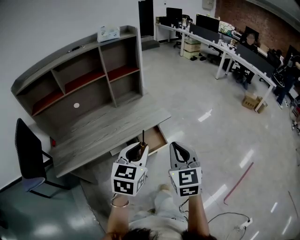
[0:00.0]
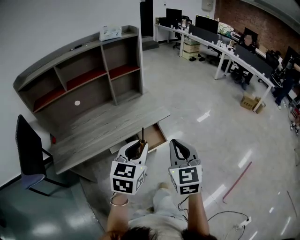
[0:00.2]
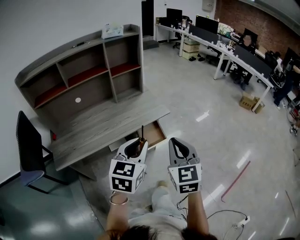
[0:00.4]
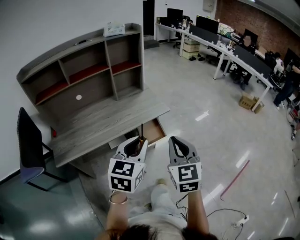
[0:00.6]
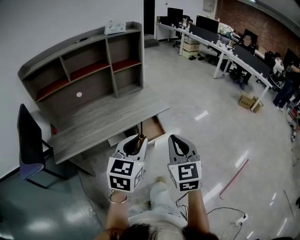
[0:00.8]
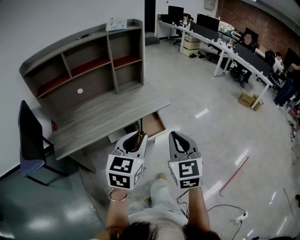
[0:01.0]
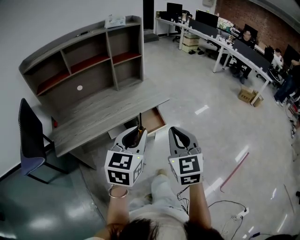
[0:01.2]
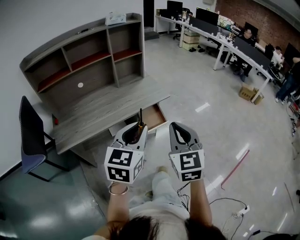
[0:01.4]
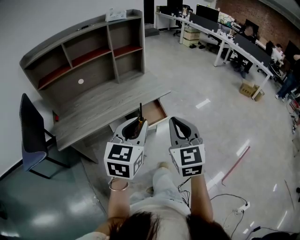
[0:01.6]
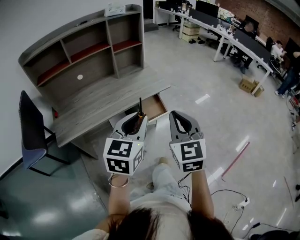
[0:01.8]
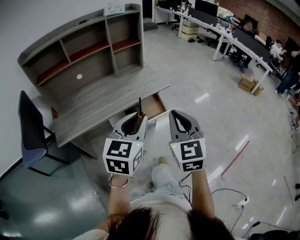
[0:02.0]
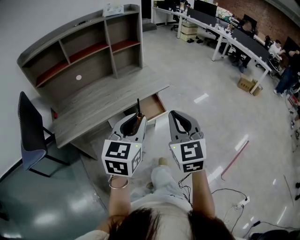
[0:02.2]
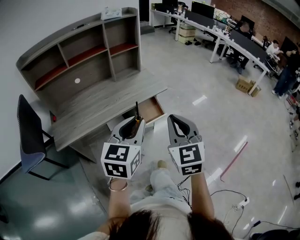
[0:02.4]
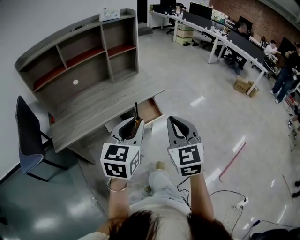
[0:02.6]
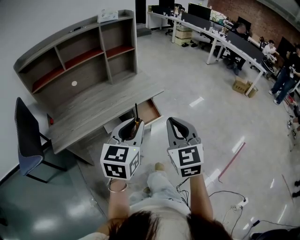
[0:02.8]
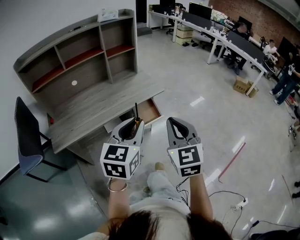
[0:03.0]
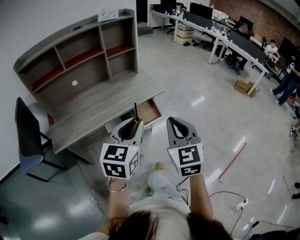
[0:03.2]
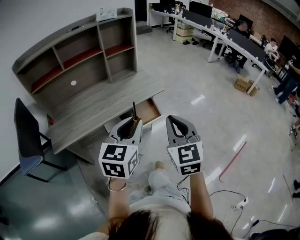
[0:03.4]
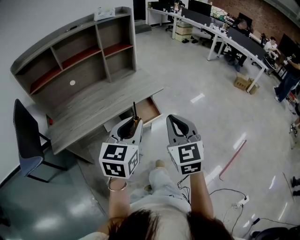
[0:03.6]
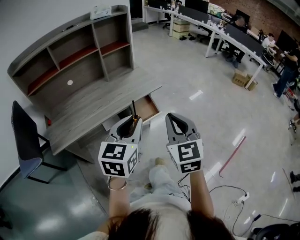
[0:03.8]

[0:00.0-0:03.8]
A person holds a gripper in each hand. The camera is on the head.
0:00.0 to 0:01.2: The two grippers go some 10 cm backward.
0:01.2 to 0:03.8: The grippers make only small movements.

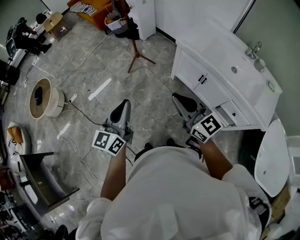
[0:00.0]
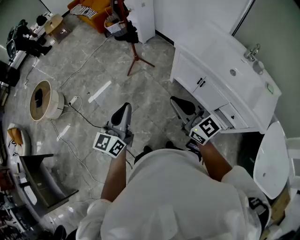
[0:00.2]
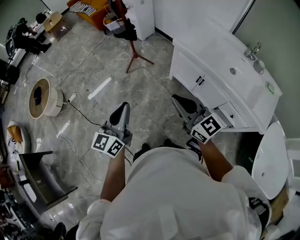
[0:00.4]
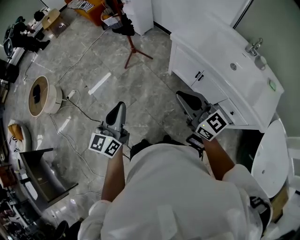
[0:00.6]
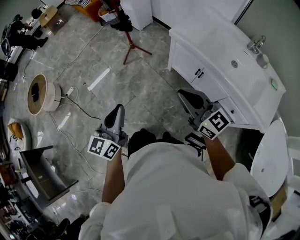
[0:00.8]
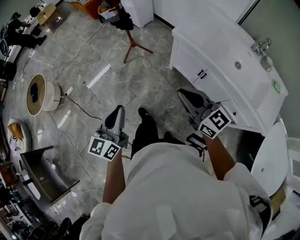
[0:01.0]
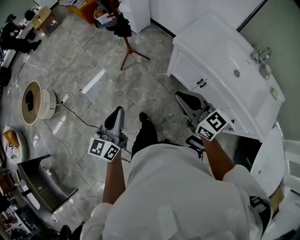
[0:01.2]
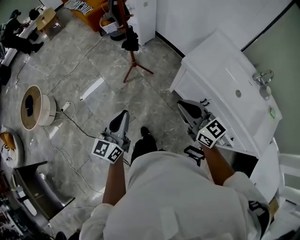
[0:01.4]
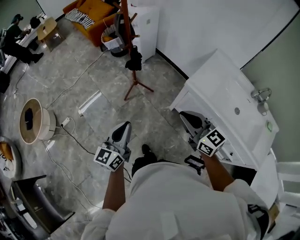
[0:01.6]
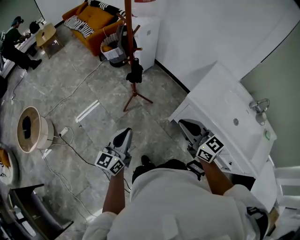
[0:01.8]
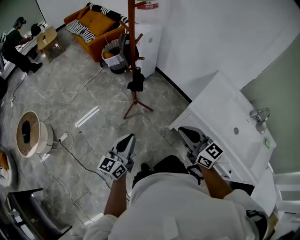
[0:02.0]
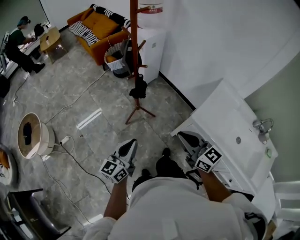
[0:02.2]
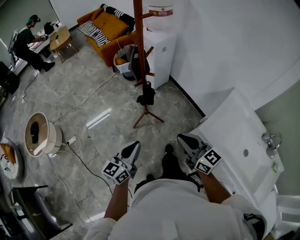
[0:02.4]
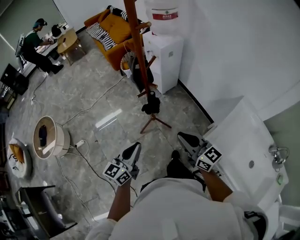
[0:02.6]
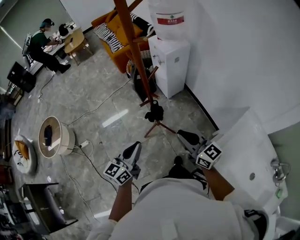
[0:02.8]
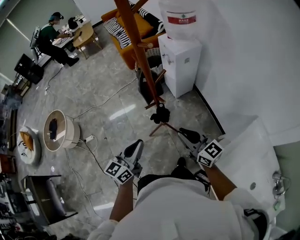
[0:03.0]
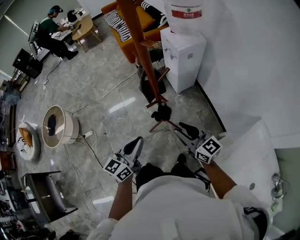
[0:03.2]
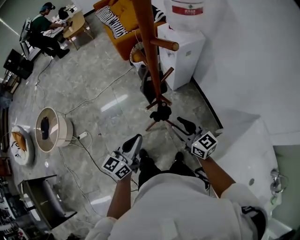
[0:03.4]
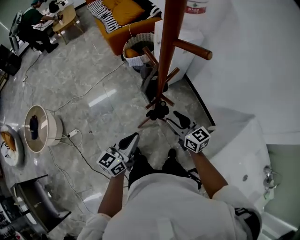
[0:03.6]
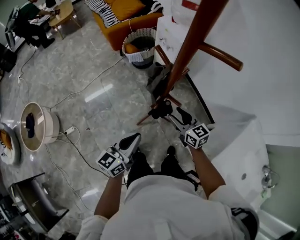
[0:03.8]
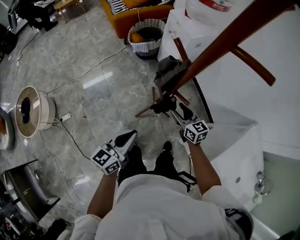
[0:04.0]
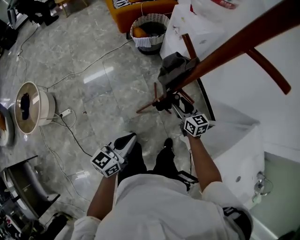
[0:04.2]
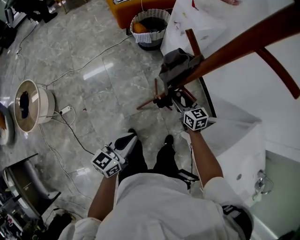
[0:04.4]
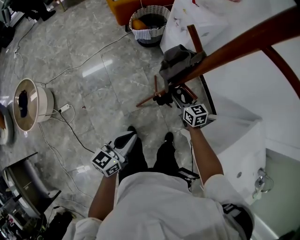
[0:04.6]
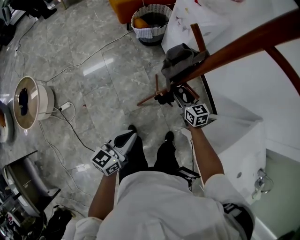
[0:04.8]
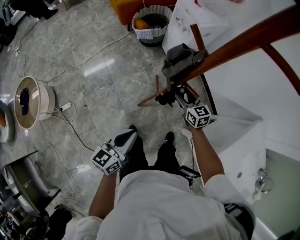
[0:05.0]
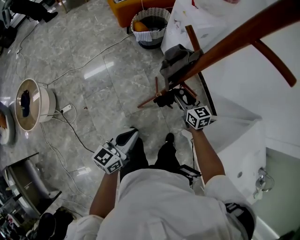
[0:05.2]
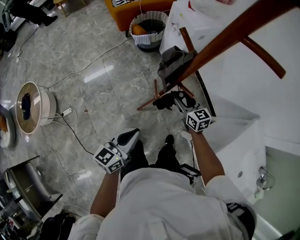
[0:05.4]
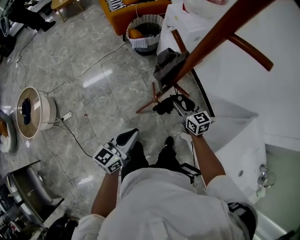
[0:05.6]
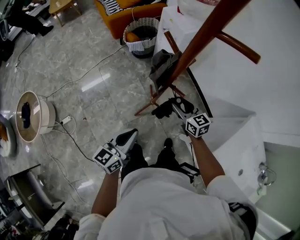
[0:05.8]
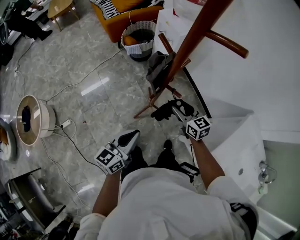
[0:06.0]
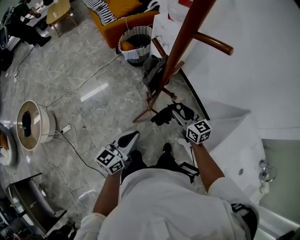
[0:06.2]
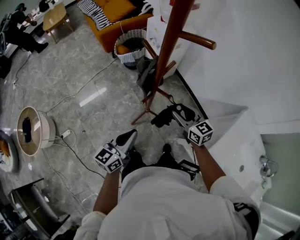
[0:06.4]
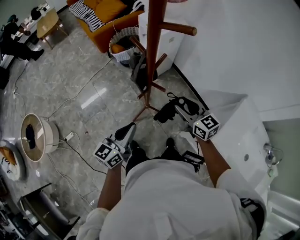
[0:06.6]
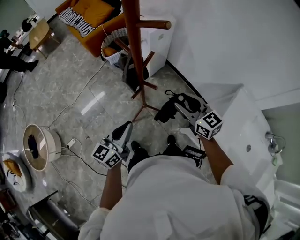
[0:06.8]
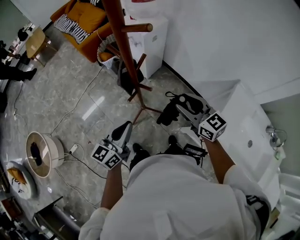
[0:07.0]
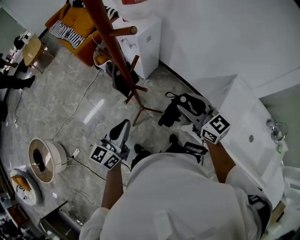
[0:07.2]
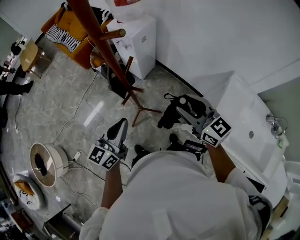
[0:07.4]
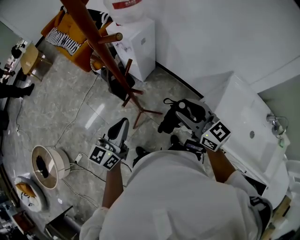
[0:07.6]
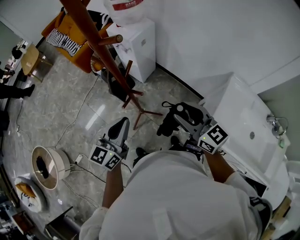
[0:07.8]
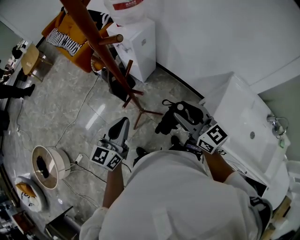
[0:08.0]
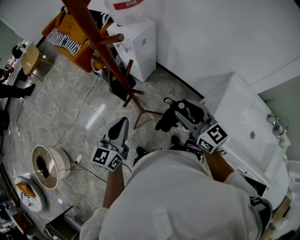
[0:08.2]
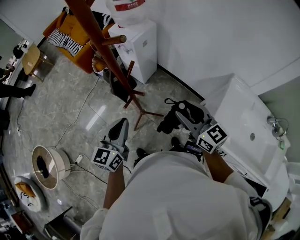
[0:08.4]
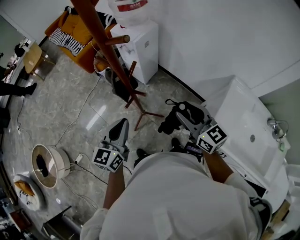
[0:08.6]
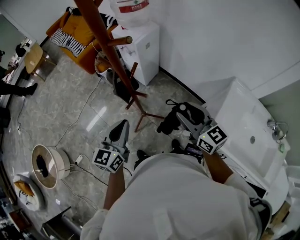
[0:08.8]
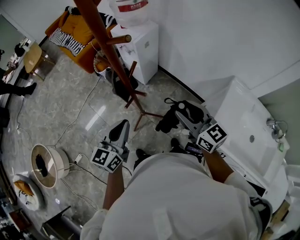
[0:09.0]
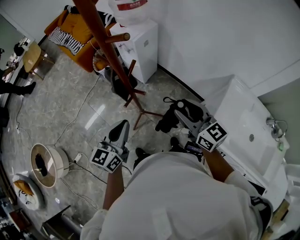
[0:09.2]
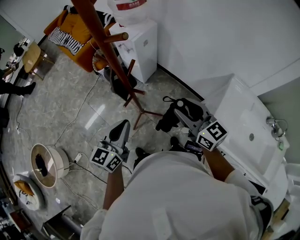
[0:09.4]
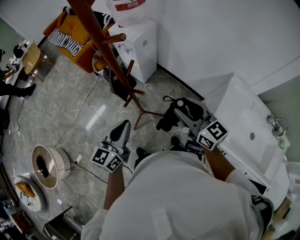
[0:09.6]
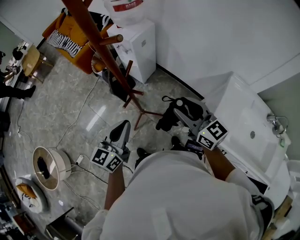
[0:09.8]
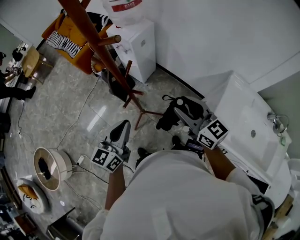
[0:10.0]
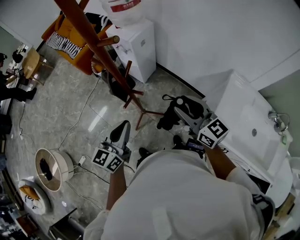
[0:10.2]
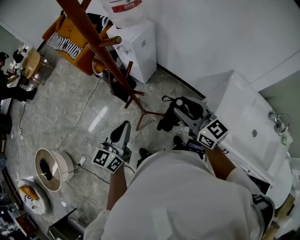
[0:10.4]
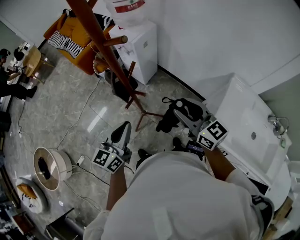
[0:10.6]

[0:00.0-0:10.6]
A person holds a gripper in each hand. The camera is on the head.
0:00.0 to 0:01.6: Both grippers travel together forward, about 25 cm.
0:01.6 to 0:03.0: Both grippers move forward, some 35 cm. The right gripper turns by roughly 20 degrees.
0:03.0 to 0:04.6: The left gripper is displaced downward, to the left and forward by some 20 cm. The right gripper heads downward, forward and to the left, covering some 35 cm, turns by about 30 degrees, and opens.
0:04.6 to 0:06.0: The right gripper travels upward and backward by approximately 10 cm; the left gripper is displaced upward by about 5 cm.
0:06.0 to 0:07.6: The right gripper moves upward, to the right and backward, roughly 25 cm, while the left gripper is displaced upward, to the right and forward by about 15 cm.
0:07.6 to 0:10.6: The grippers make only small movements.

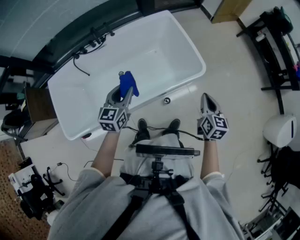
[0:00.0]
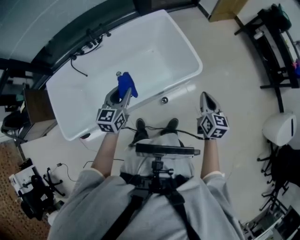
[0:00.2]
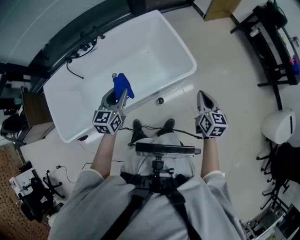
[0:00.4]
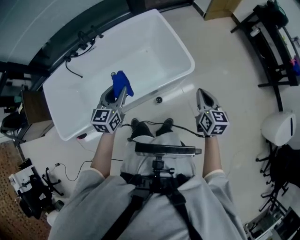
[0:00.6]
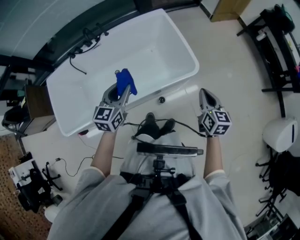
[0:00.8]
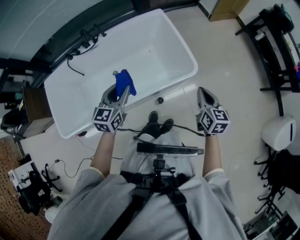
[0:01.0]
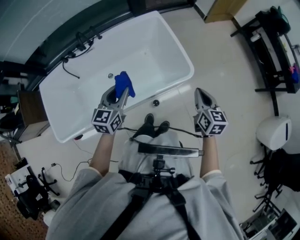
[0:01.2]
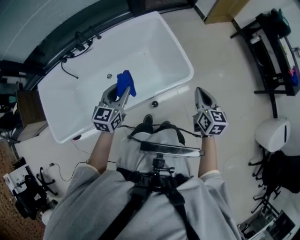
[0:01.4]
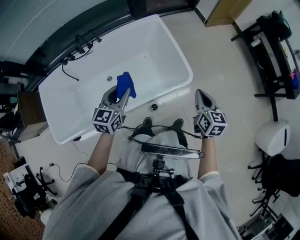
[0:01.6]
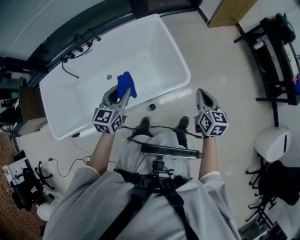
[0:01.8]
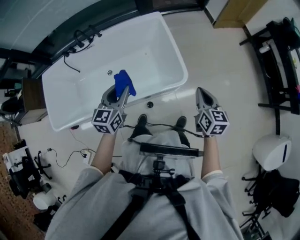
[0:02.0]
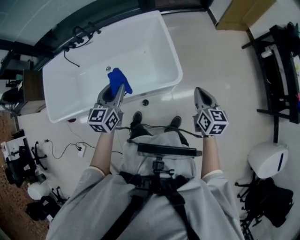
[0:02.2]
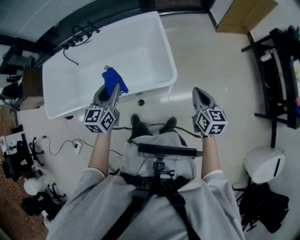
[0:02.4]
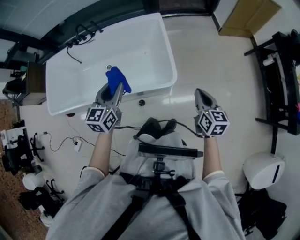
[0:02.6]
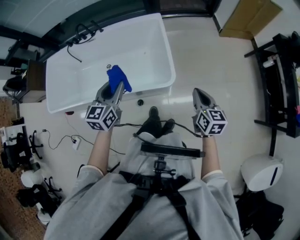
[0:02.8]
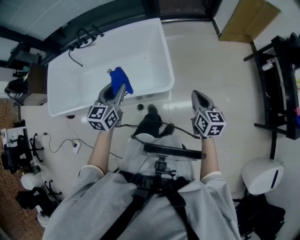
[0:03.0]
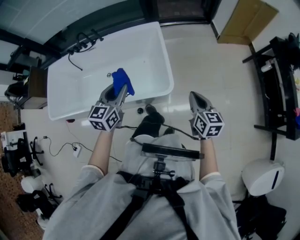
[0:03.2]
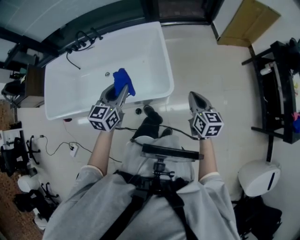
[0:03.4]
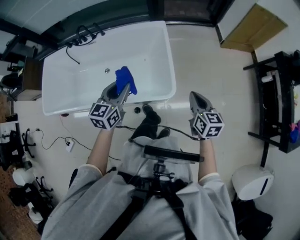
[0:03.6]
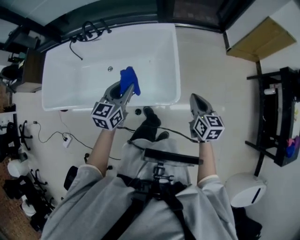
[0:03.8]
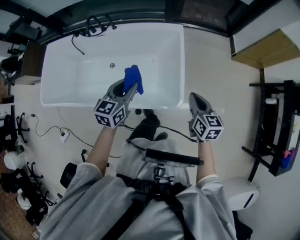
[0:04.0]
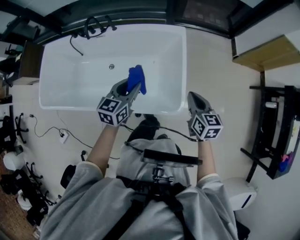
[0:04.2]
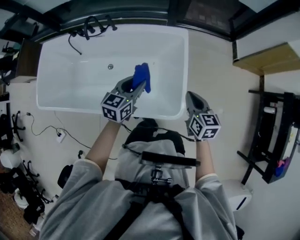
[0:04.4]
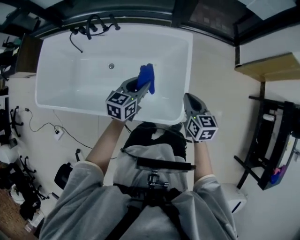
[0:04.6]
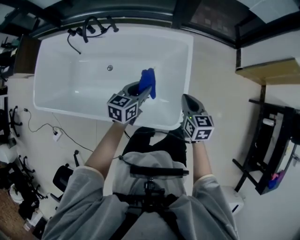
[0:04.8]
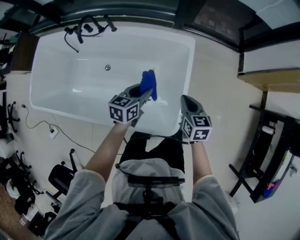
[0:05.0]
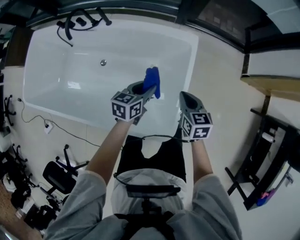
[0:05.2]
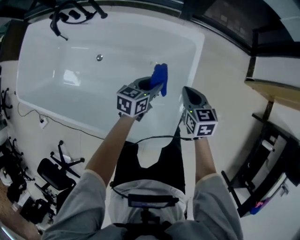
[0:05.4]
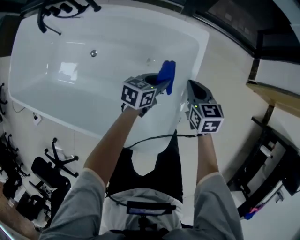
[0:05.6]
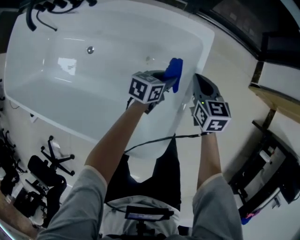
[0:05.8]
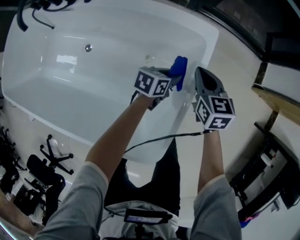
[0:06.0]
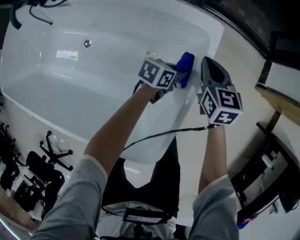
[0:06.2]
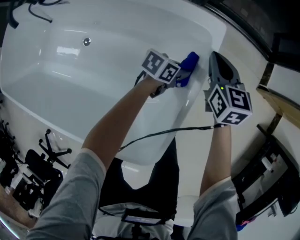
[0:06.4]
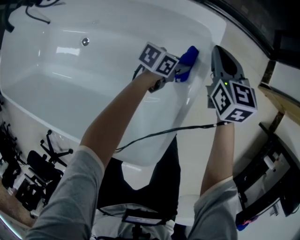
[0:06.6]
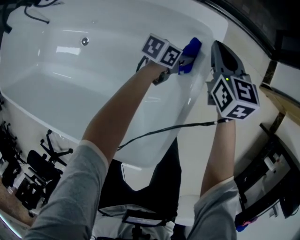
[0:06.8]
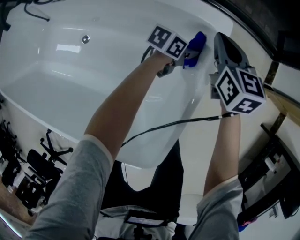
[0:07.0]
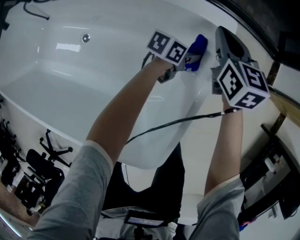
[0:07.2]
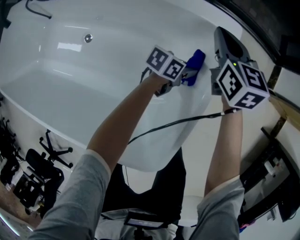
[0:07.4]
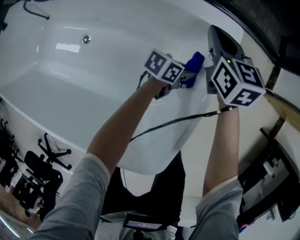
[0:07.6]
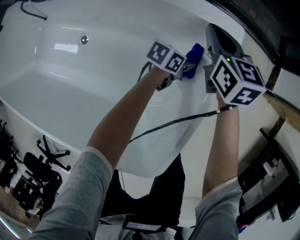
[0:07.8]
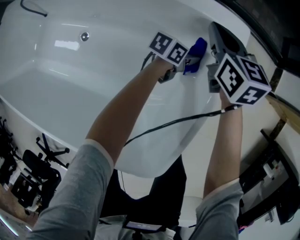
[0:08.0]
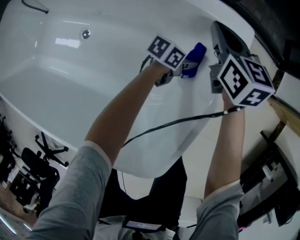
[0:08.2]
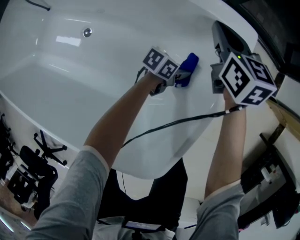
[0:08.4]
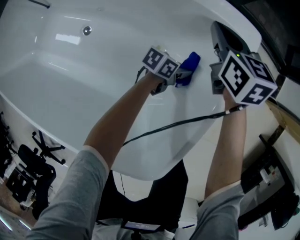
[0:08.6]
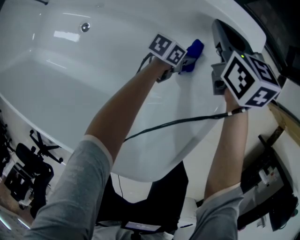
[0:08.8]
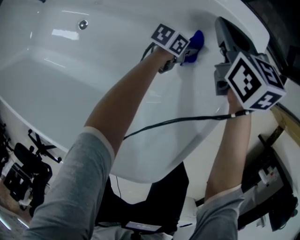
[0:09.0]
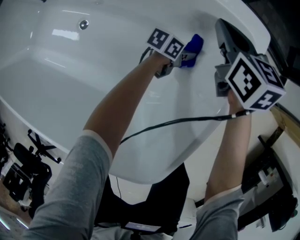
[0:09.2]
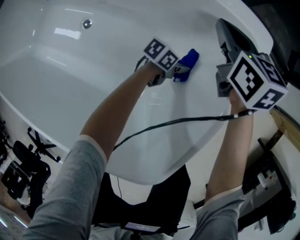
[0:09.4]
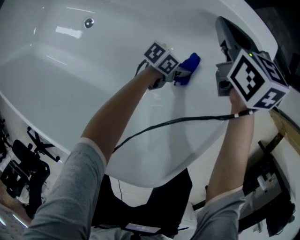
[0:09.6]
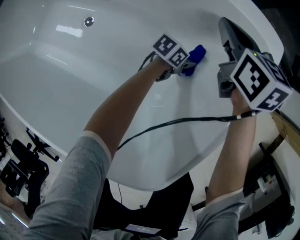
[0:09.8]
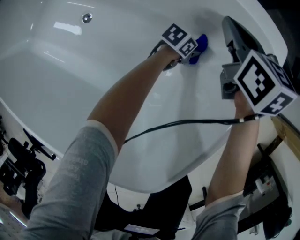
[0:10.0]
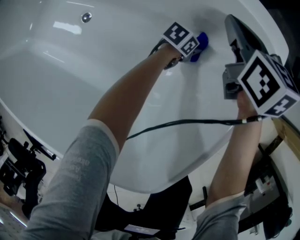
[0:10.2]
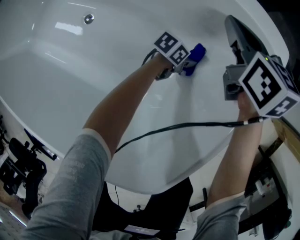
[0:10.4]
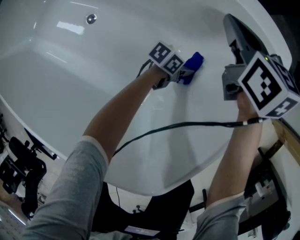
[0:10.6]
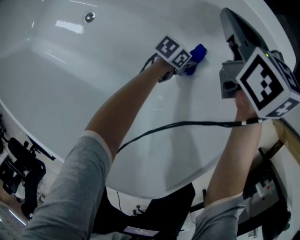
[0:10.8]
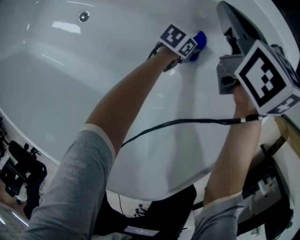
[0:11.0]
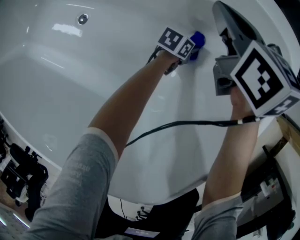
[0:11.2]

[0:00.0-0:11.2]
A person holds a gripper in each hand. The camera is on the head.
0:00.0 to 0:01.6: The right gripper heads forward and to the right, covering roughly 10 cm, while the left gripper shifts some 10 cm to the right and forward.
0:01.6 to 0:03.2: The two grippers go roughly 20 cm to the right. The right gripper rotates roughly 20 degrees.
0:03.2 to 0:04.8: The left gripper moves forward and downward, some 30 cm, and rotates some 20 degrees, while the right gripper is displaced forward and to the left by about 35 cm, and turns by approximately 20 degrees.
0:04.8 to 0:06.4: The left gripper goes some 50 cm downward, forward and to the right, and swivels some 30 degrees. The right gripper shifts approximately 40 cm forward and downward.
0:06.4 to 0:08.0: The left gripper heads downward and forward, covering some 10 cm. Meanwhile the right gripper heads to the left, covering approximately 10 cm.
0:08.0 to 0:09.6: The left gripper is displaced downward and backward by about 15 cm. The right gripper moves to the left, about 5 cm.
0:09.6 to 0:11.2: The left gripper swings forward and backward, some 10 cm each way, with 2 reversals, and changes its angle by approximately 20 degrees.
